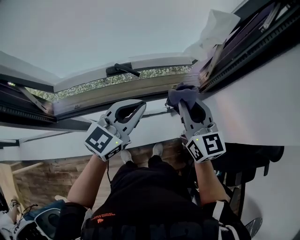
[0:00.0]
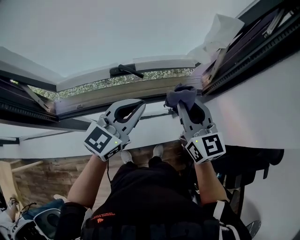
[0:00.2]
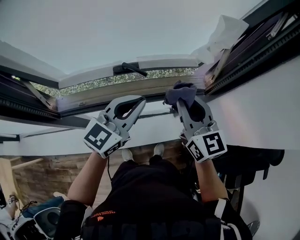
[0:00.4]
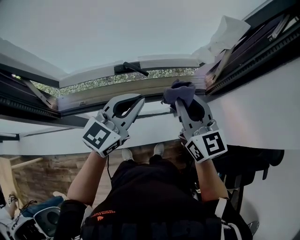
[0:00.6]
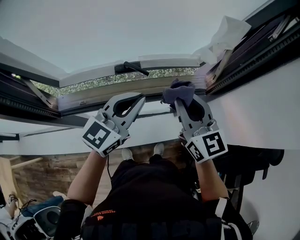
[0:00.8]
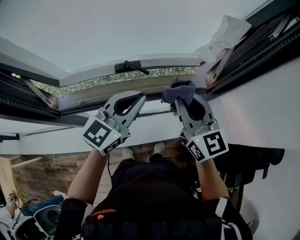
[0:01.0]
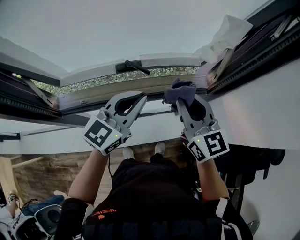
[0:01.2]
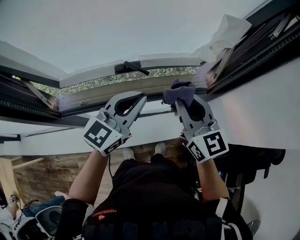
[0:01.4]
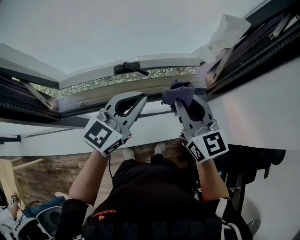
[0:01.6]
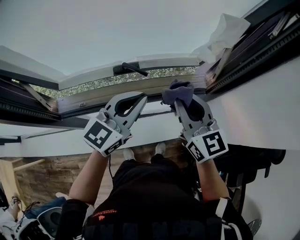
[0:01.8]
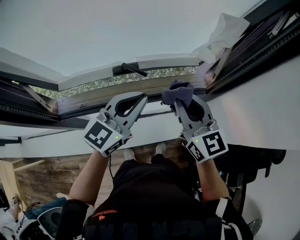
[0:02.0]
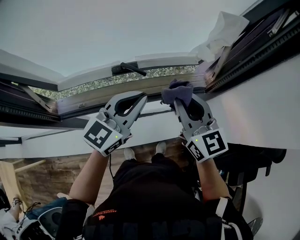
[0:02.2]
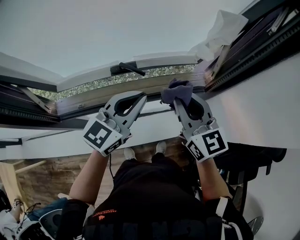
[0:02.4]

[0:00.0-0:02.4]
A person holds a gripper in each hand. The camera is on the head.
0:00.0 to 0:01.2: The right gripper is displaced to the left by about 5 cm.
0:01.2 to 0:02.4: There are only small adjustments of the grippers.

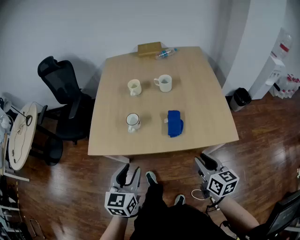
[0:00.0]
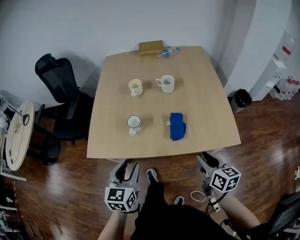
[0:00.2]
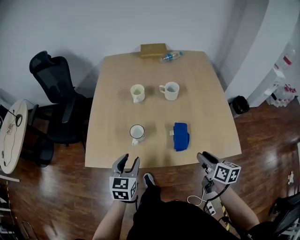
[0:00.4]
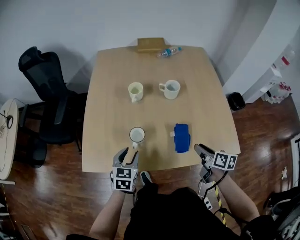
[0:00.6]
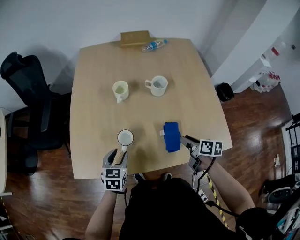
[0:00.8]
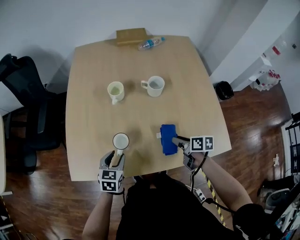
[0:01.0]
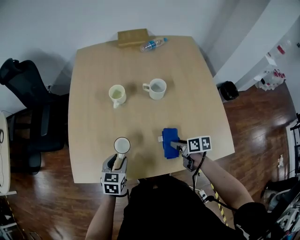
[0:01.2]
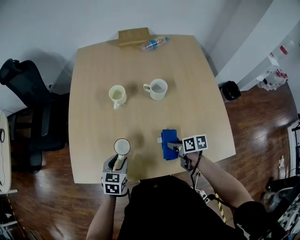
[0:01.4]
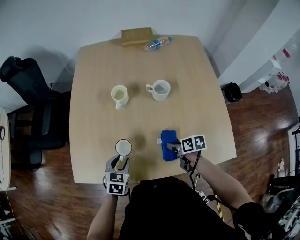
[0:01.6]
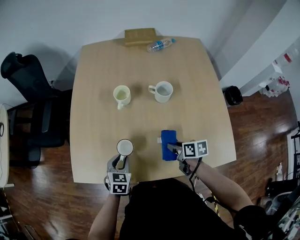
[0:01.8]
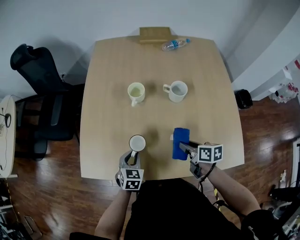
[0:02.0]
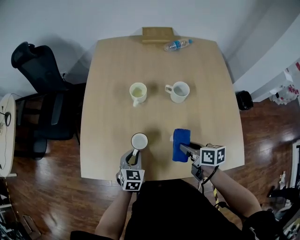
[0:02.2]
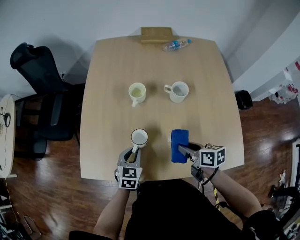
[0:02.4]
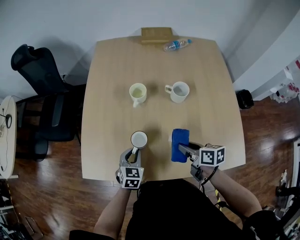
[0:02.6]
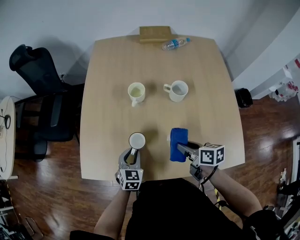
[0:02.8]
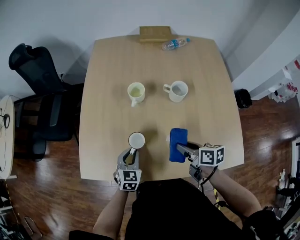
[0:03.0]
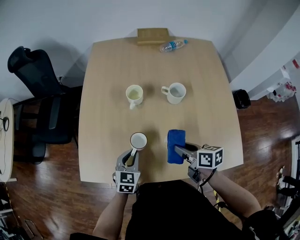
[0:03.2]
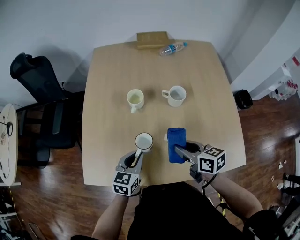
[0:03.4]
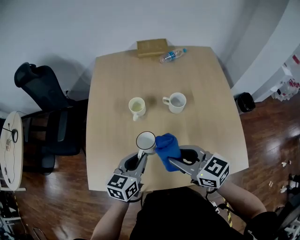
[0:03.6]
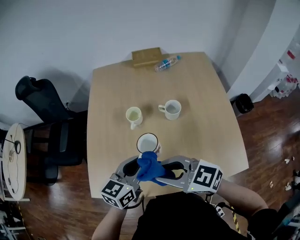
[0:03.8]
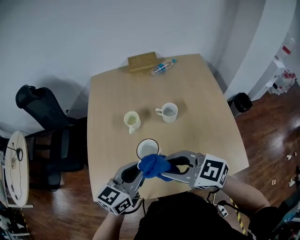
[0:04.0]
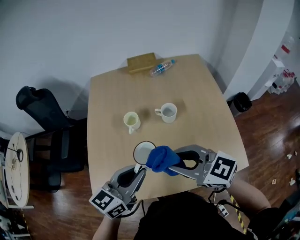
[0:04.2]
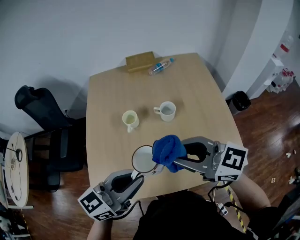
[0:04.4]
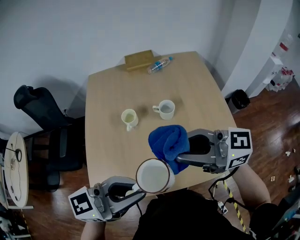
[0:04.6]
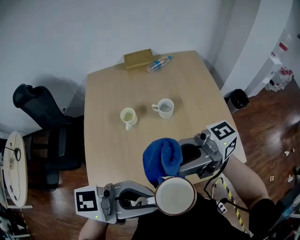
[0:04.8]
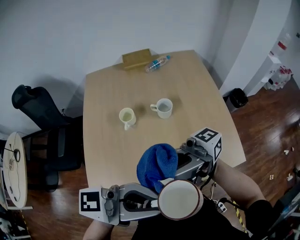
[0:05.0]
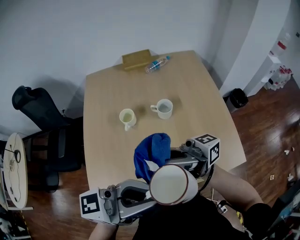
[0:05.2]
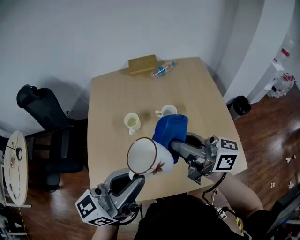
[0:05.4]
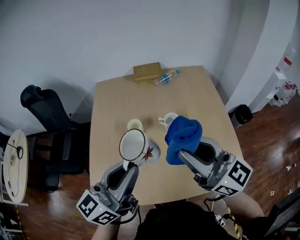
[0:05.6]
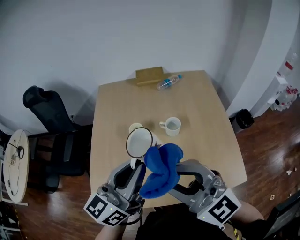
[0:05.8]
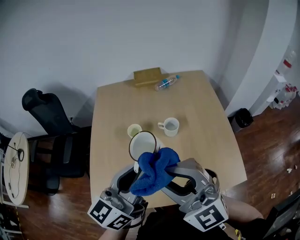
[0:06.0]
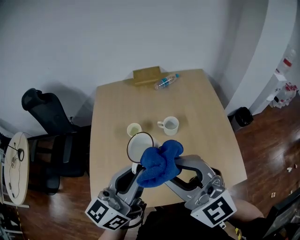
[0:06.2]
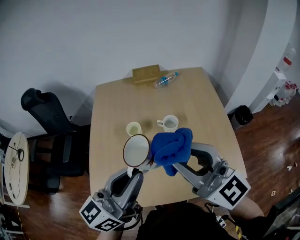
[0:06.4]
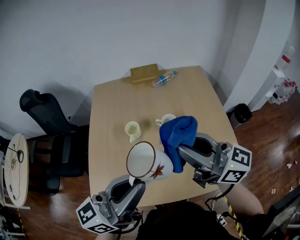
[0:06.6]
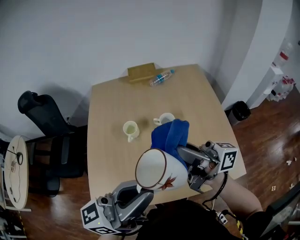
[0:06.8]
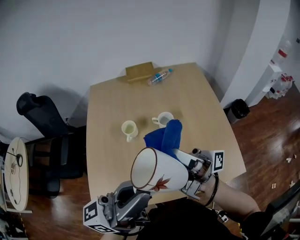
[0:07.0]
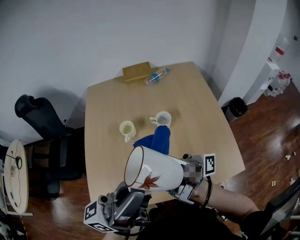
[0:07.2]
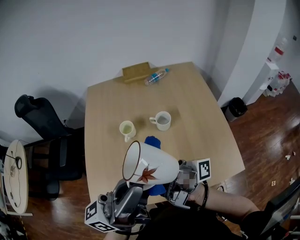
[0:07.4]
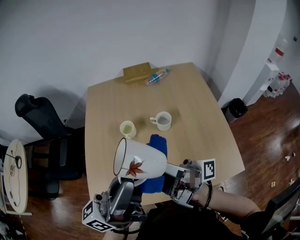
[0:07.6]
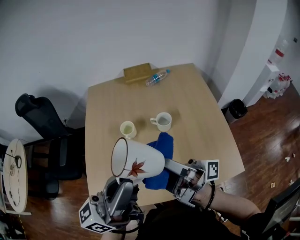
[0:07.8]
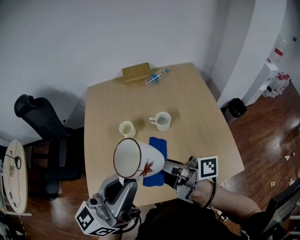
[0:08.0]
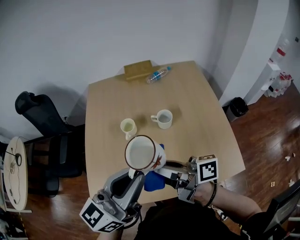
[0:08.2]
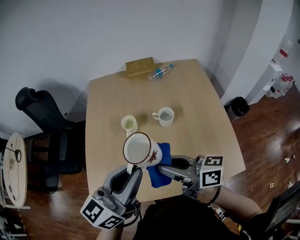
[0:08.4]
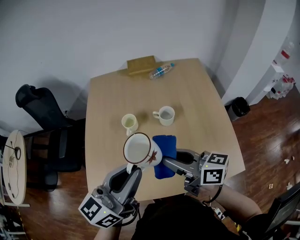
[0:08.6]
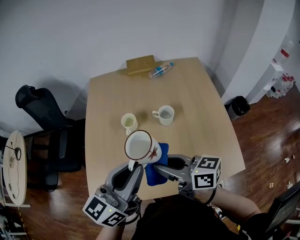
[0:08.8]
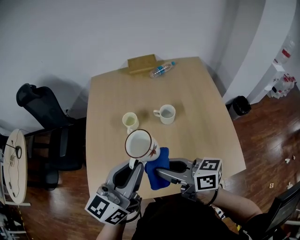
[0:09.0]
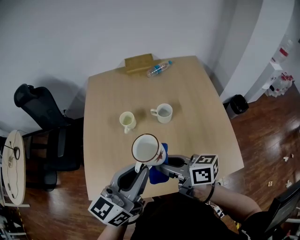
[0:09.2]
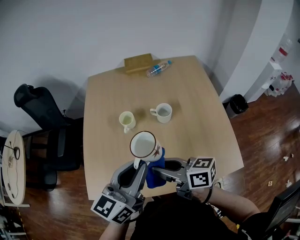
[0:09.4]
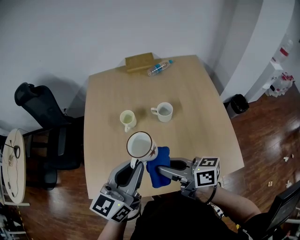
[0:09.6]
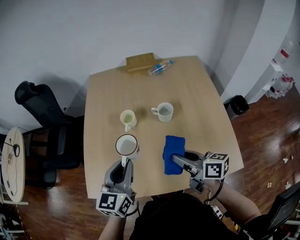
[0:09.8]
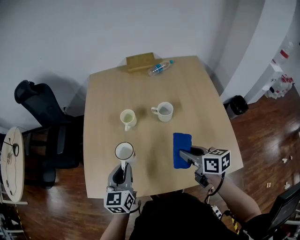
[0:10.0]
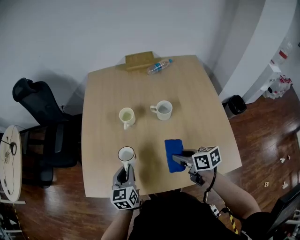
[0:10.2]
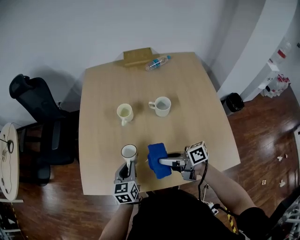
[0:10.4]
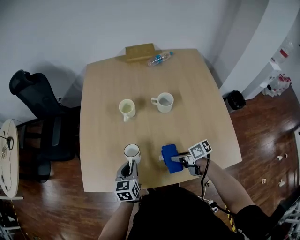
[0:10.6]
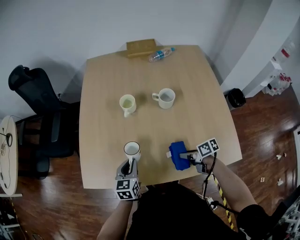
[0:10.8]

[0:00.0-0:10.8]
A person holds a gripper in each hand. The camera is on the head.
0:00.0 to 0:01.6: The two grippers go some 30 cm forward and downward. The left gripper changes its angle by roughly 30 degrees. Meanwhile the right gripper rotates approximately 40 degrees.
0:01.6 to 0:03.0: The right gripper travels upward by about 10 cm.
0:03.0 to 0:04.6: The two grippers go about 35 cm upward. The right gripper tips its fingers upward by approximately 40 degrees. Meanwhile the left gripper points its fingers roughly 40 degrees further upward.
0:04.6 to 0:06.2: The right gripper changes place by some 5 cm, and rolls counterclockwise, seen from behind, by some 40 degrees. Meanwhile the left gripper changes place by about 10 cm, and swivels some 40 degrees.
0:06.2 to 0:07.8: The left gripper moves upward, approximately 5 cm, and turns by roughly 30 degrees. The right gripper goes approximately 5 cm downward, moves roughly 5 cm to the right and comes back, and twists about 110 degrees clockwise, seen from behind.
0:07.8 to 0:09.2: Both grippers move downward, about 10 cm. The right gripper points its fingers some 40 degrees further downward. The left gripper swivels some 30 degrees.
0:09.2 to 0:10.8: The grippers both shift downward by approximately 30 cm. The left gripper points its fingers approximately 30 degrees further downward; the right gripper rotates roughly 40 degrees.

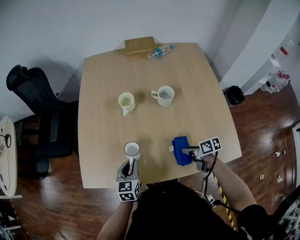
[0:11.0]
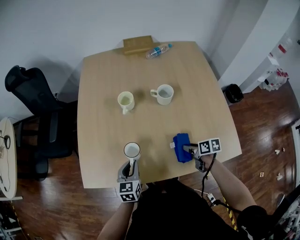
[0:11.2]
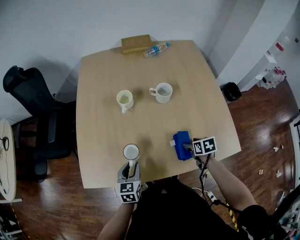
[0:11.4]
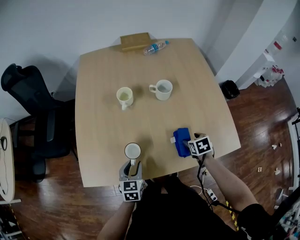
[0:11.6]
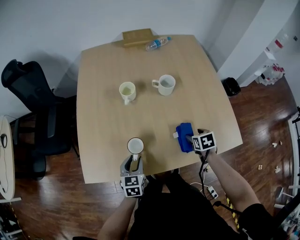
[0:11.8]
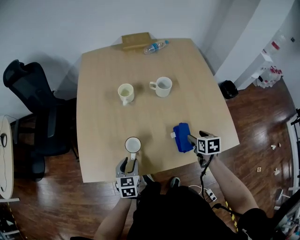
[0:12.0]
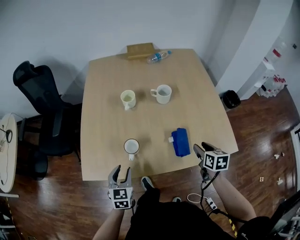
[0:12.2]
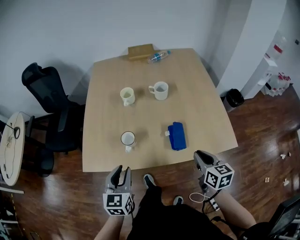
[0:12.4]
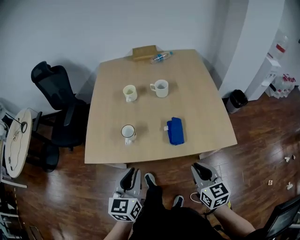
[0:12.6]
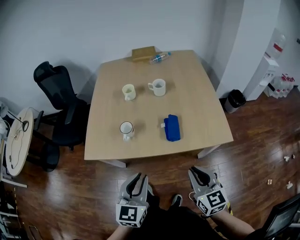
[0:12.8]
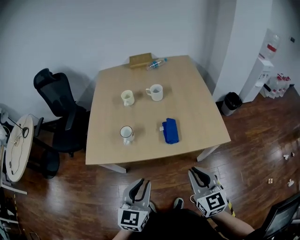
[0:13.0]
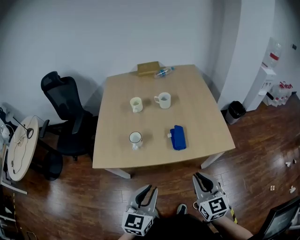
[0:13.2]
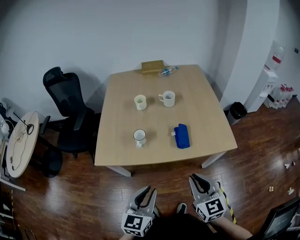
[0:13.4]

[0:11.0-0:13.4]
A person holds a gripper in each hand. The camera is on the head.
0:11.0 to 0:12.2: The right gripper travels upward by roughly 10 cm, and turns by about 40 degrees. The left gripper moves approximately 10 cm, and opens its fingers.
0:12.2 to 0:13.4: The right gripper travels backward, upward and to the left by some 30 cm, angles its fingers upward, by about 30 degrees, and closes its fingers. Meanwhile the left gripper moves backward, upward and to the right, some 30 cm, and closes.

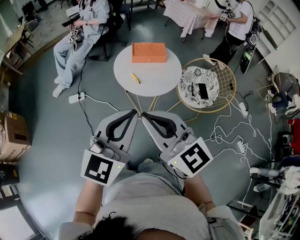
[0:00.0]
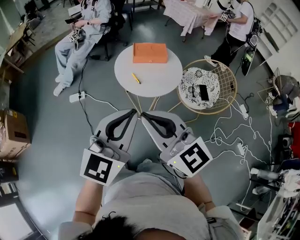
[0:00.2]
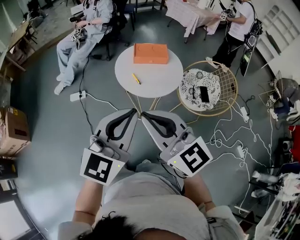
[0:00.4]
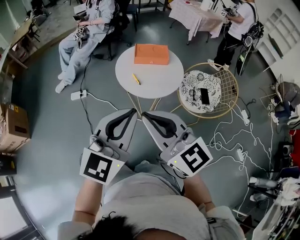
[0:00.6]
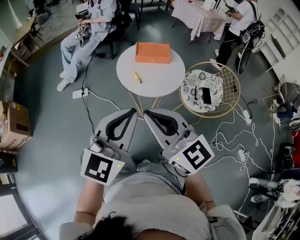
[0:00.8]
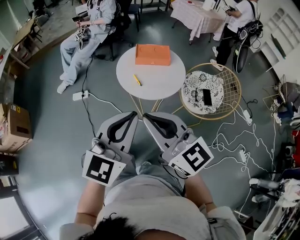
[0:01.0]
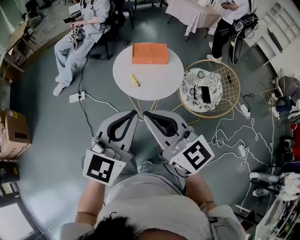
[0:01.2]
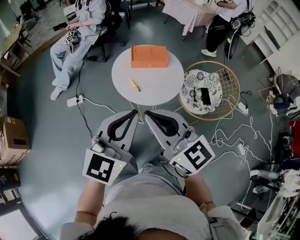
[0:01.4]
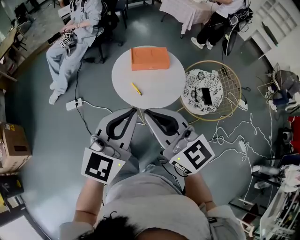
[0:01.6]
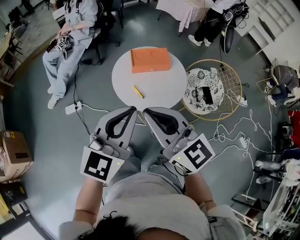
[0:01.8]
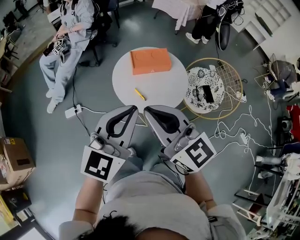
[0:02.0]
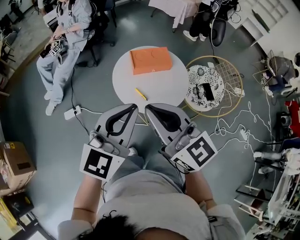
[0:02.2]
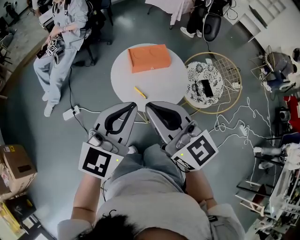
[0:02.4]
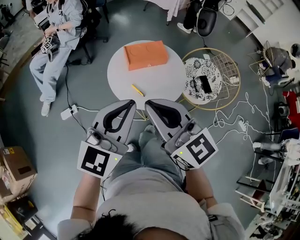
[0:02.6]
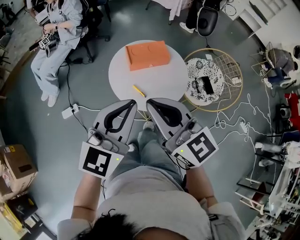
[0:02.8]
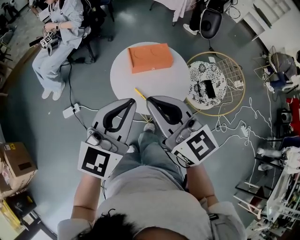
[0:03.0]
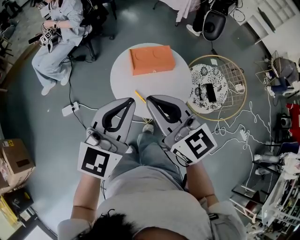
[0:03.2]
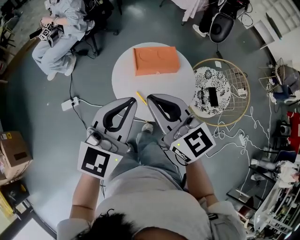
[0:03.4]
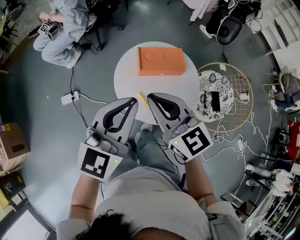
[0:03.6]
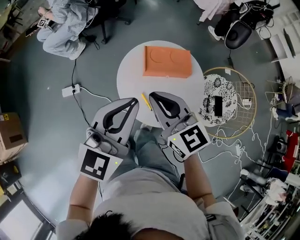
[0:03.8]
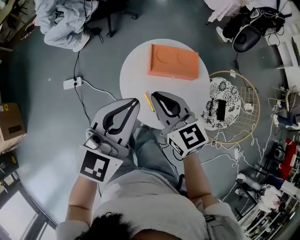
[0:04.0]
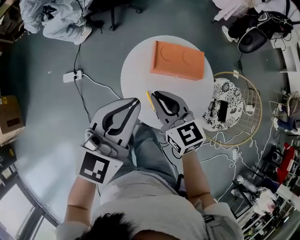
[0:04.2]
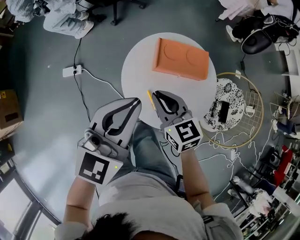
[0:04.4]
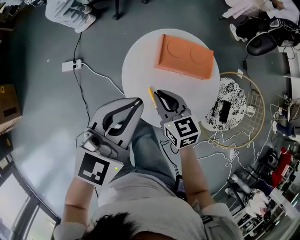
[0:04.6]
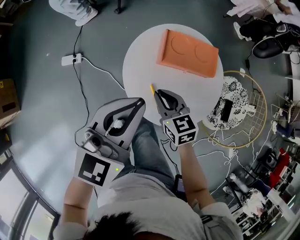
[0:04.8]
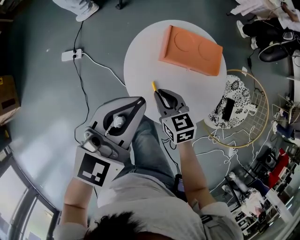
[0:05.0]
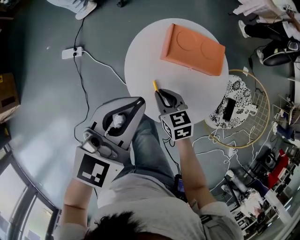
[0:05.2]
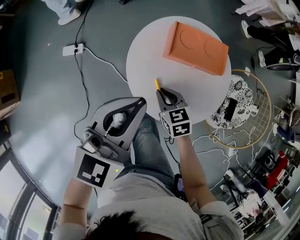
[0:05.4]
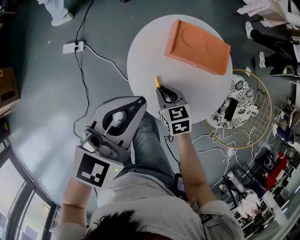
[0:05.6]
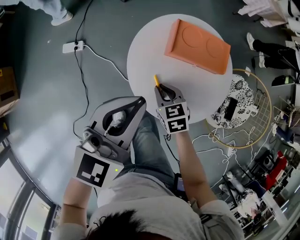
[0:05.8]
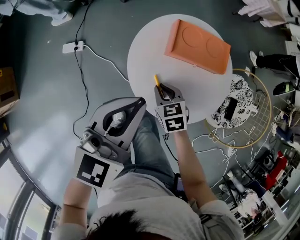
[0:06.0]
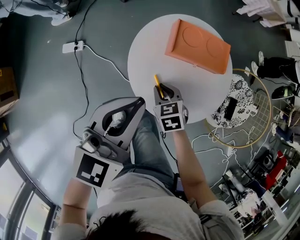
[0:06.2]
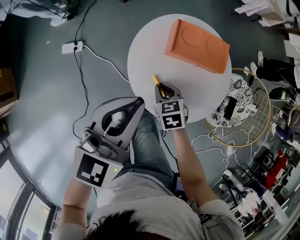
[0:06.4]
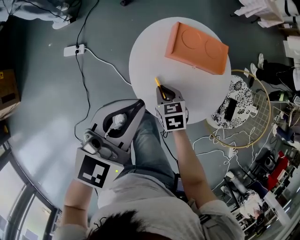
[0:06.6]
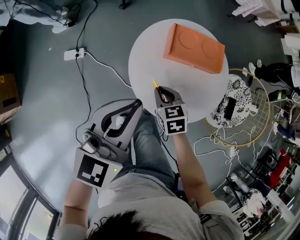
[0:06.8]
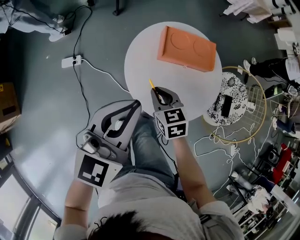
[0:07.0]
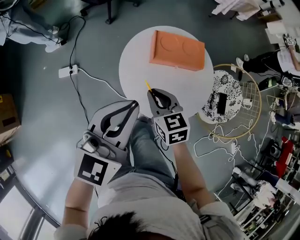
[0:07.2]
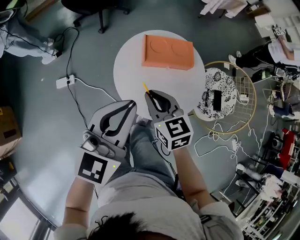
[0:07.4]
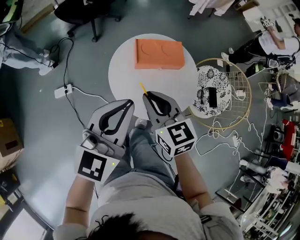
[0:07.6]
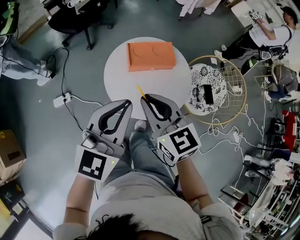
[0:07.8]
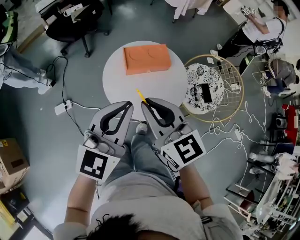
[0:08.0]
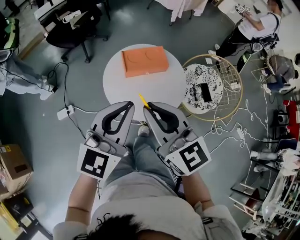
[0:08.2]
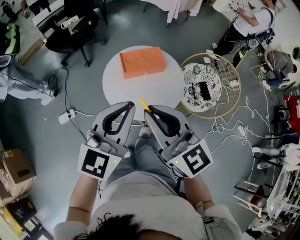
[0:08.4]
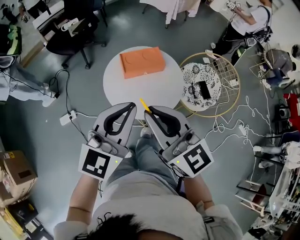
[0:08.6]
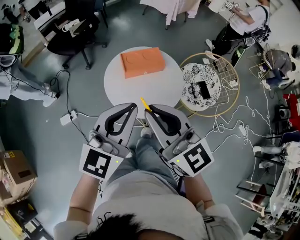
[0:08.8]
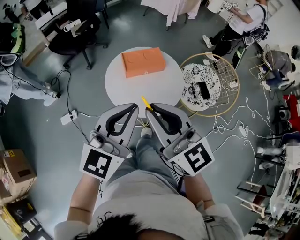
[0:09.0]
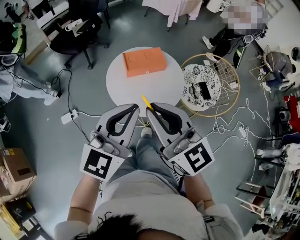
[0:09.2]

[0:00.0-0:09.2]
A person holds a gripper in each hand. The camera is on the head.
0:00.0 to 0:01.6: Both grippers move forward, some 15 cm.
0:01.6 to 0:03.0: Both grippers move forward, some 10 cm.
0:03.0 to 0:04.6: The right gripper moves downward and forward, approximately 30 cm, and tips its fingers downward by approximately 30 degrees. The left gripper shifts approximately 15 cm forward and downward.
0:04.6 to 0:06.2: The right gripper shifts roughly 10 cm downward, and changes its angle by roughly 20 degrees.
0:06.2 to 0:07.6: The left gripper travels upward by some 5 cm. The right gripper moves upward, about 25 cm, and tilts its fingers approximately 30 degrees upward.
0:07.6 to 0:09.2: The left gripper goes some 10 cm backward and upward, while the right gripper is displaced upward and backward by about 20 cm, and swivels roughly 30 degrees.
